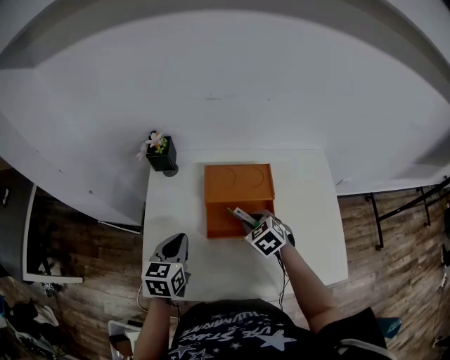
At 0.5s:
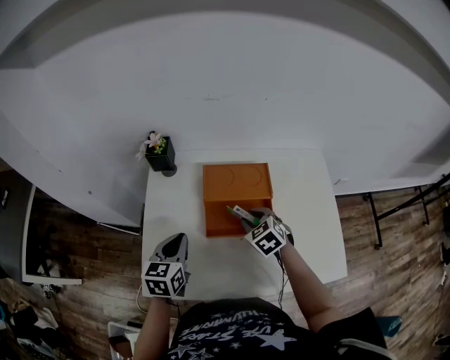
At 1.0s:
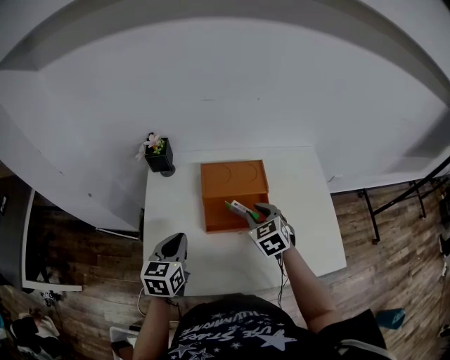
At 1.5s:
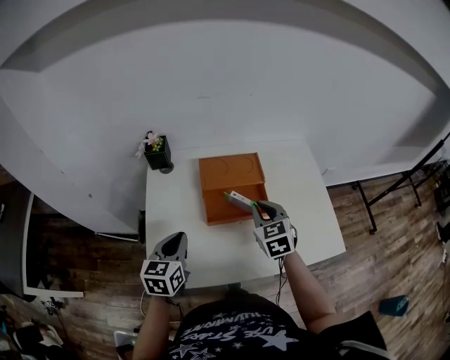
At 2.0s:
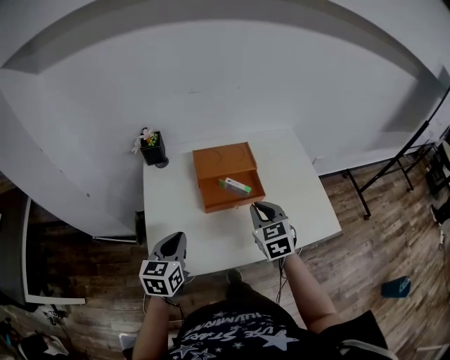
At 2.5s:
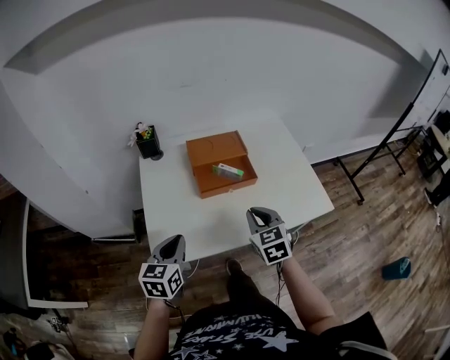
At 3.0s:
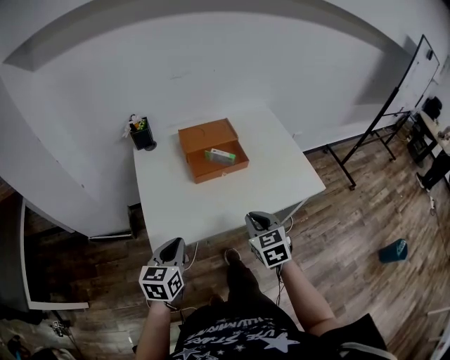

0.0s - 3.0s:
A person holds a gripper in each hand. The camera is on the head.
0.0s - 1.5s: The left gripper goes roughly 5 cm backward, while the right gripper is displaced upward and backward by roughly 10 cm, and changes its angle by approximately 30 degrees.
1.5s - 3.0s: The two grippers go about 25 cm backward.

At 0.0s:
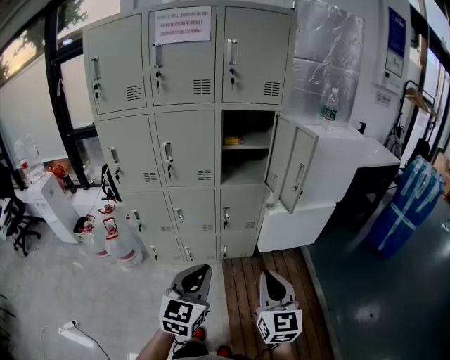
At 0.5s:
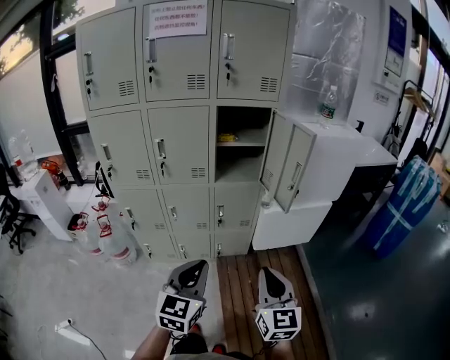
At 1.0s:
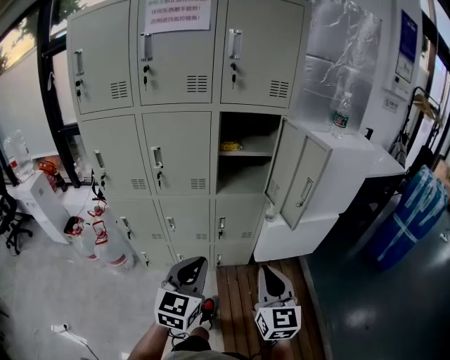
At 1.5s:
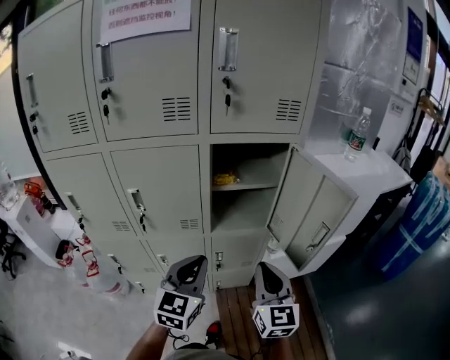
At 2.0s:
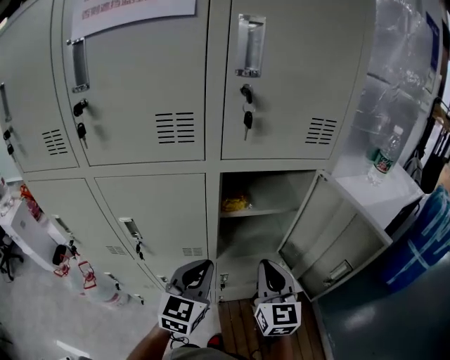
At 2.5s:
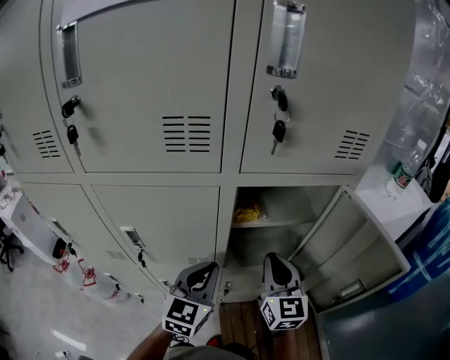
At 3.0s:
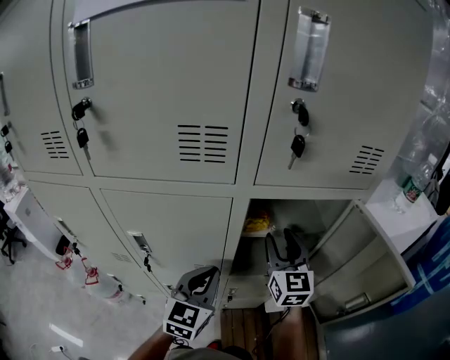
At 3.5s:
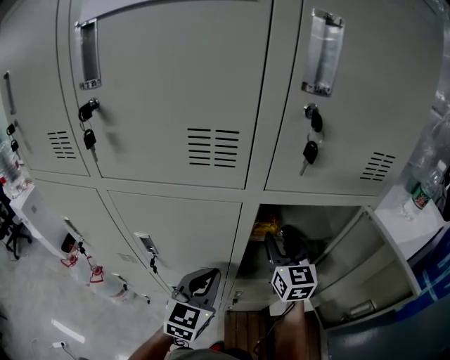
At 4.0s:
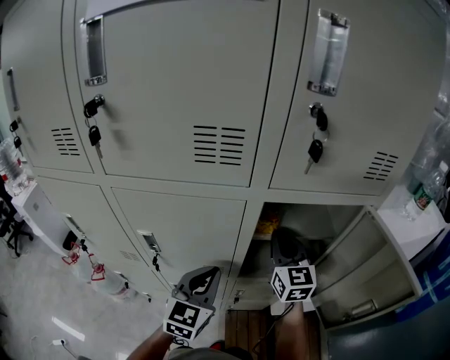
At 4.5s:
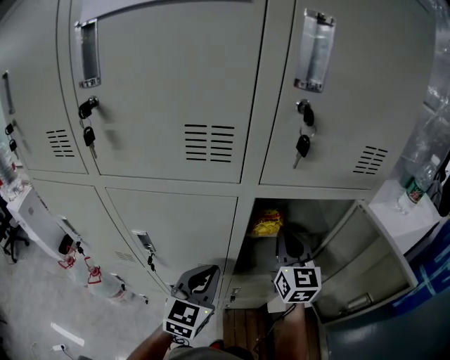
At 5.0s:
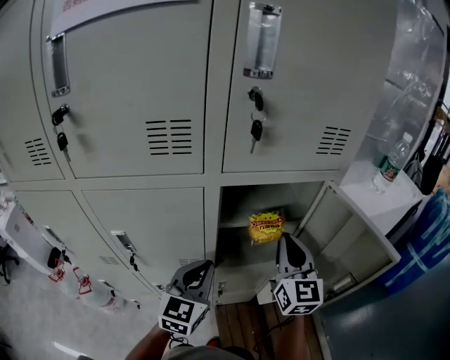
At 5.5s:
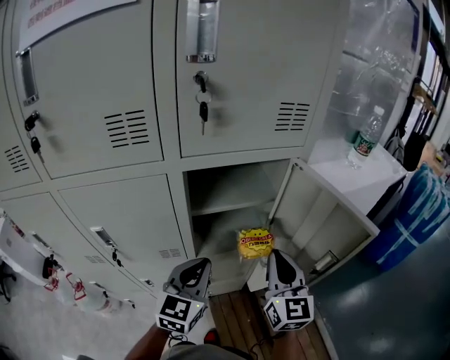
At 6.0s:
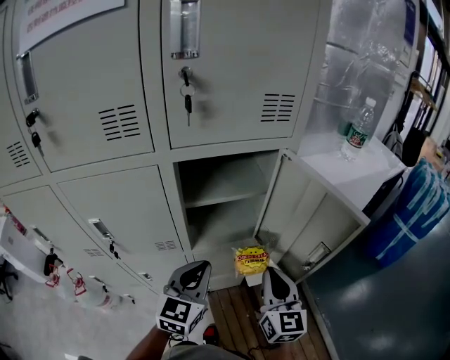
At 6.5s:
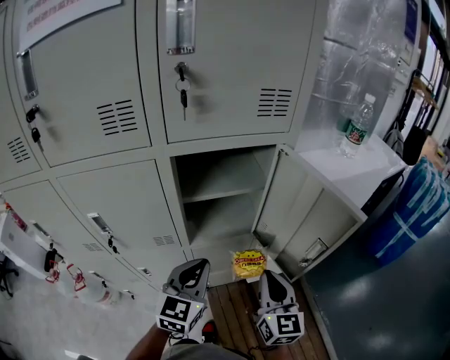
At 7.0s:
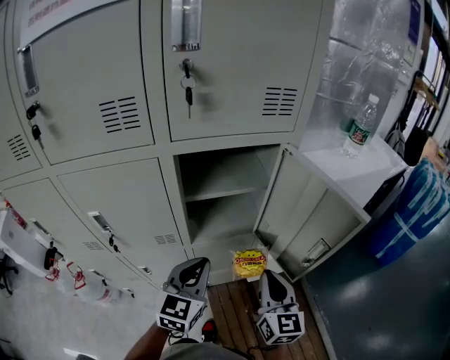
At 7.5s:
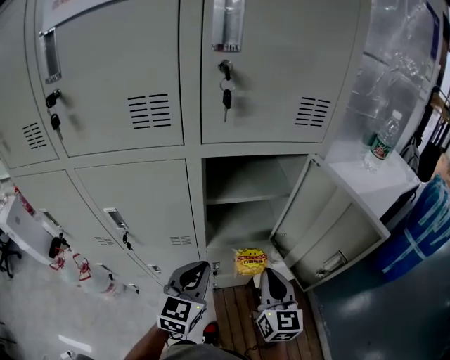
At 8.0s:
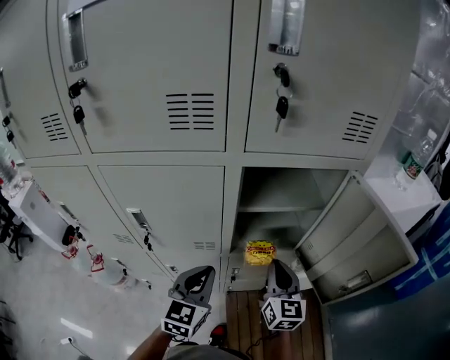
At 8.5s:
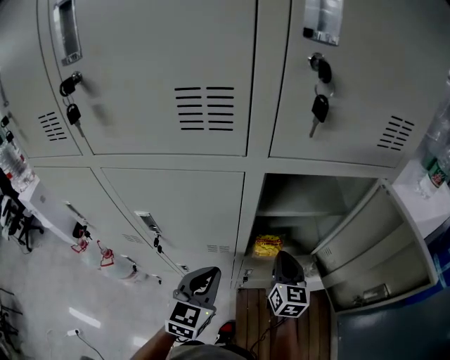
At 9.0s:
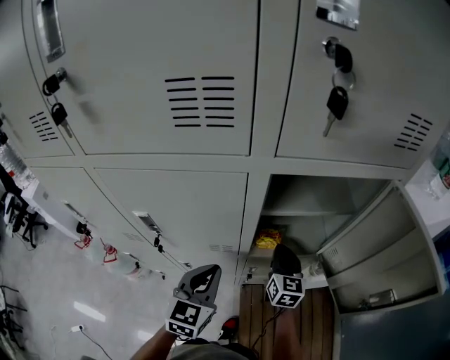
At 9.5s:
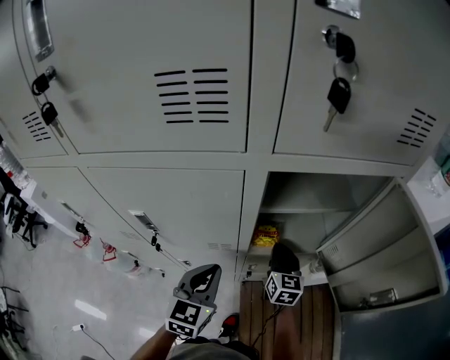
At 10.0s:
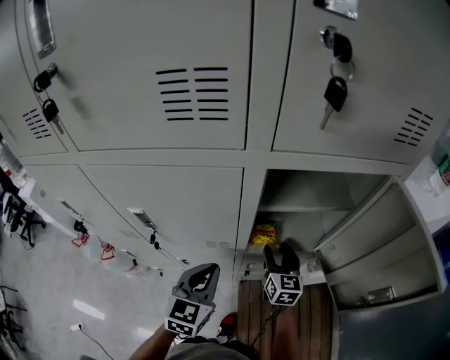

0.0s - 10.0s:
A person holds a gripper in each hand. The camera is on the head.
0.0s - 2.0s: The pair of grippers is taken forward, about 50 cm.
2.0s - 4.0s: The left gripper shifts some 10 cm to the left and forward, while the right gripper is displaced forward by some 15 cm, and opens, then closes once more.
4.0s - 6.0s: The left gripper goes roughly 15 cm to the right and backward; the right gripper travels backward and to the right by approximately 25 cm, and rotates roughly 20 degrees.
6.0s - 8.0s: The right gripper heads to the left, forward and downward, covering approximately 15 cm. The left gripper heads to the left, covering roughly 10 cm.
8.0s - 10.0s: The right gripper shifts roughly 15 cm downward and forward, and opens its fingers; the left gripper ends up some 5 cm from where it was.

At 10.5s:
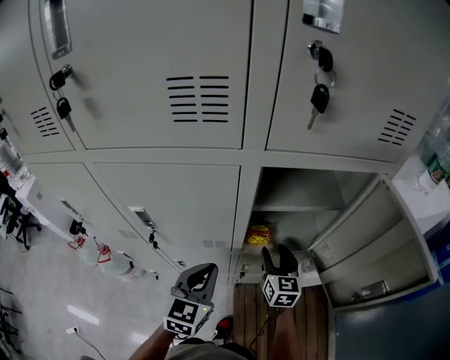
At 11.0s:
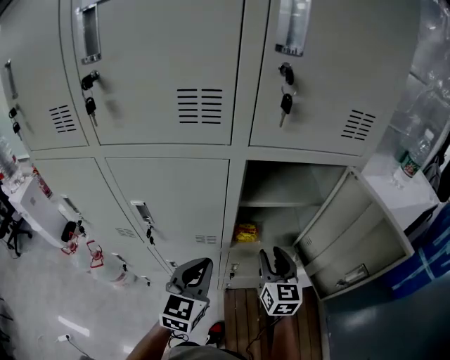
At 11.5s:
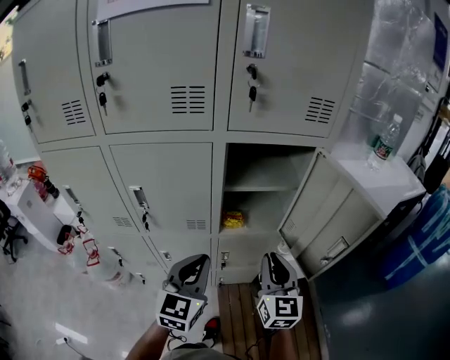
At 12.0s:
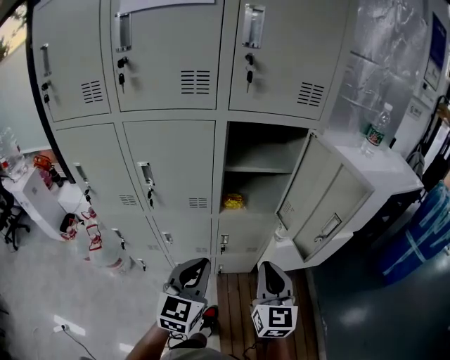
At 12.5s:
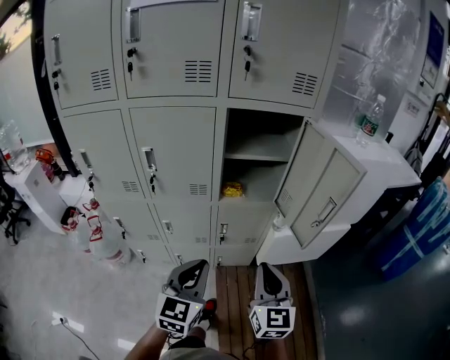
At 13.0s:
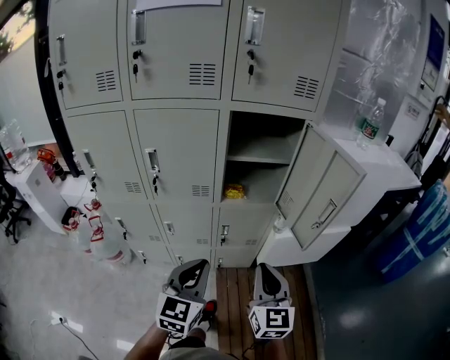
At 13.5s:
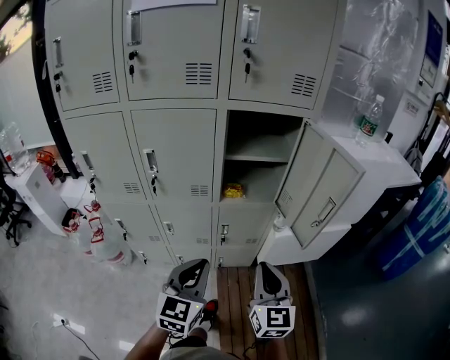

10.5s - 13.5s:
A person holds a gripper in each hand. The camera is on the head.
10.5s - 12.0s: The left gripper goes roughly 20 cm backward. The right gripper travels backward and upward by roughly 30 cm, and closes up.
12.0s - 13.5s: The two grippers go approximately 5 cm backward.
